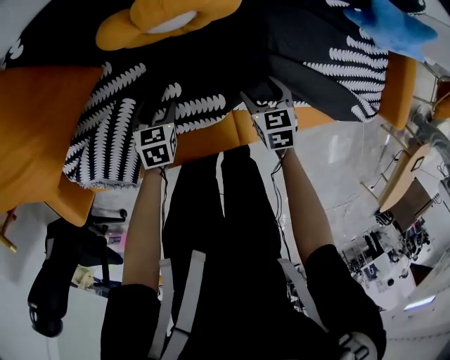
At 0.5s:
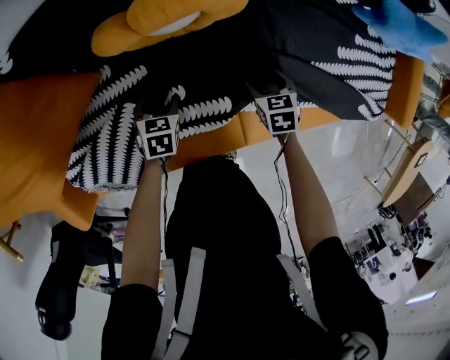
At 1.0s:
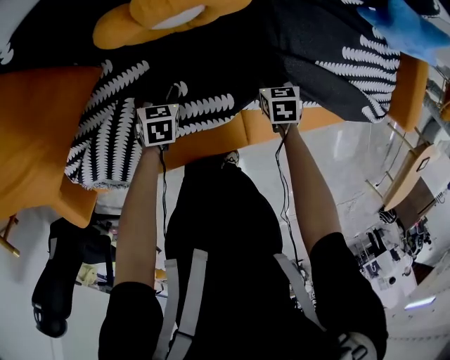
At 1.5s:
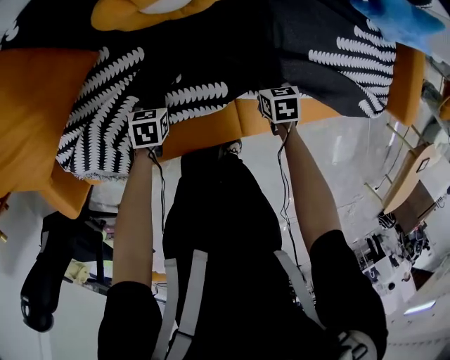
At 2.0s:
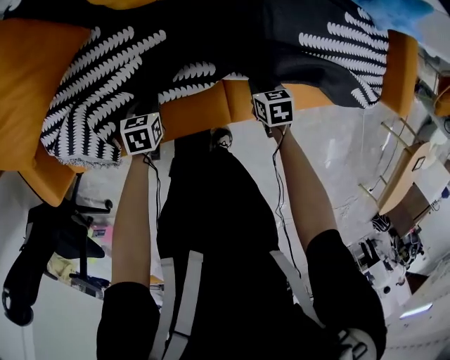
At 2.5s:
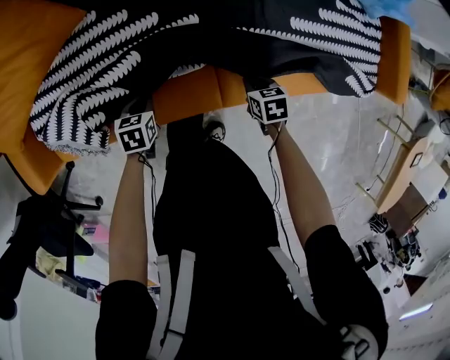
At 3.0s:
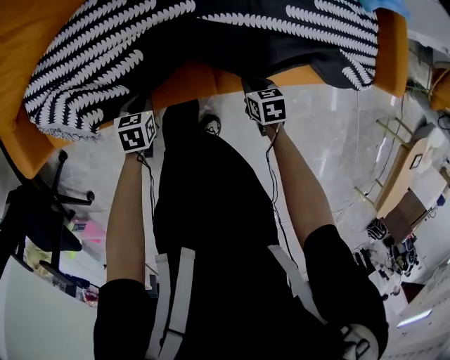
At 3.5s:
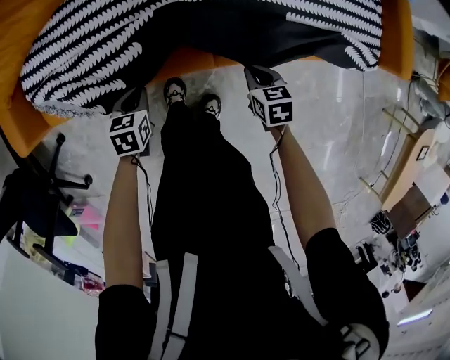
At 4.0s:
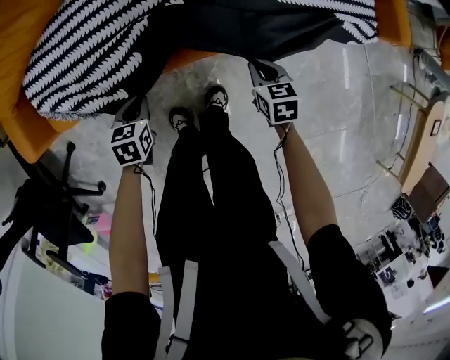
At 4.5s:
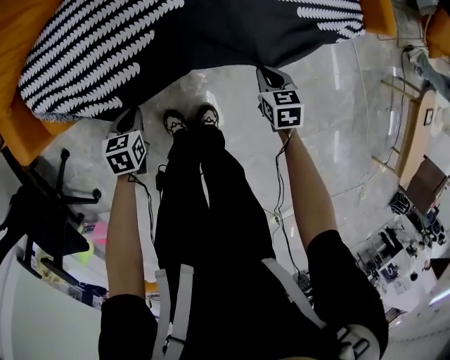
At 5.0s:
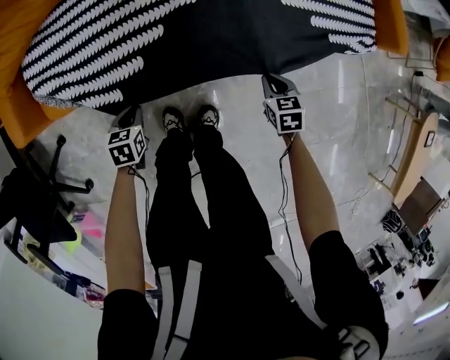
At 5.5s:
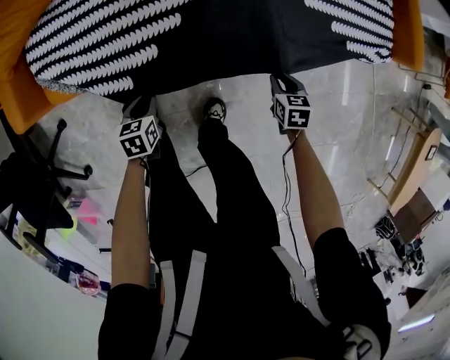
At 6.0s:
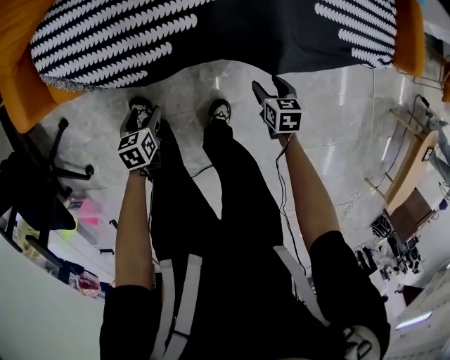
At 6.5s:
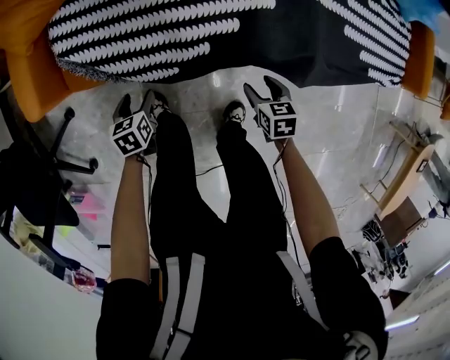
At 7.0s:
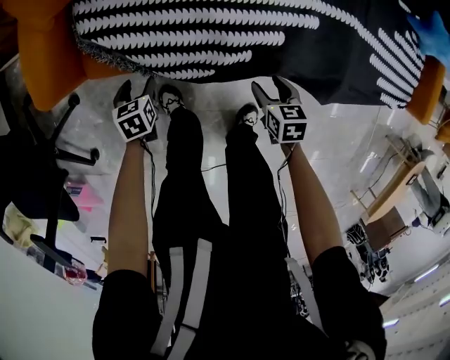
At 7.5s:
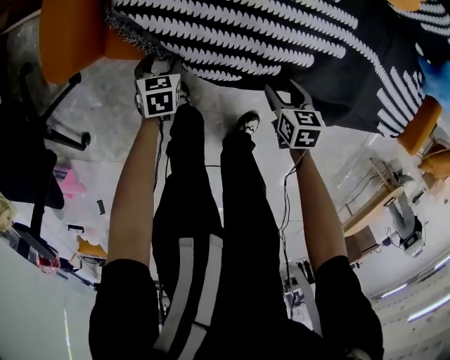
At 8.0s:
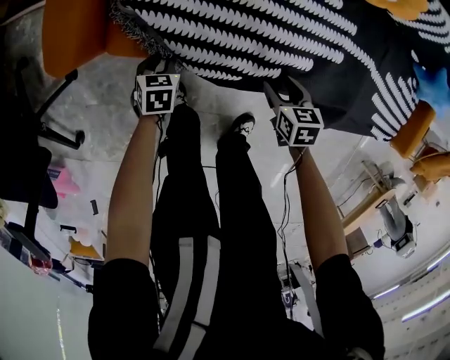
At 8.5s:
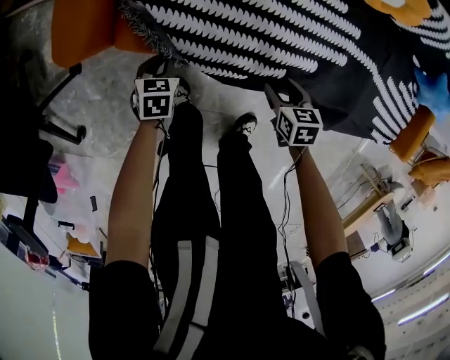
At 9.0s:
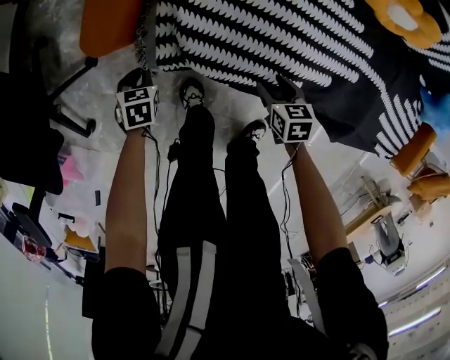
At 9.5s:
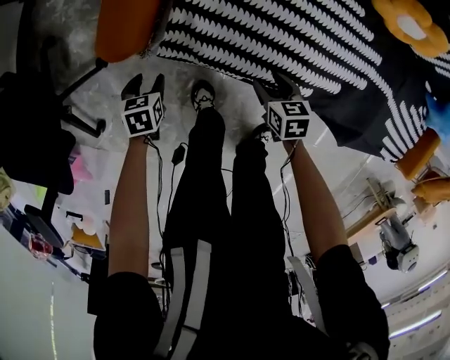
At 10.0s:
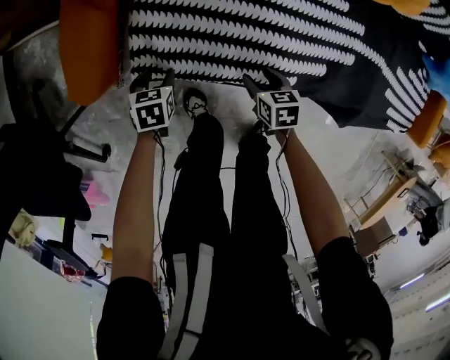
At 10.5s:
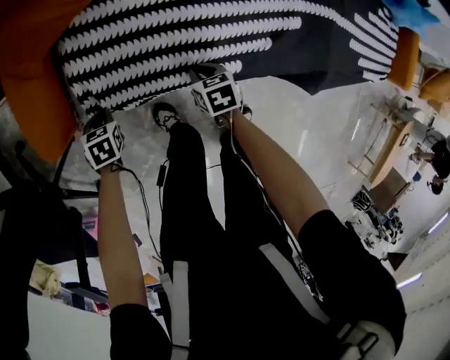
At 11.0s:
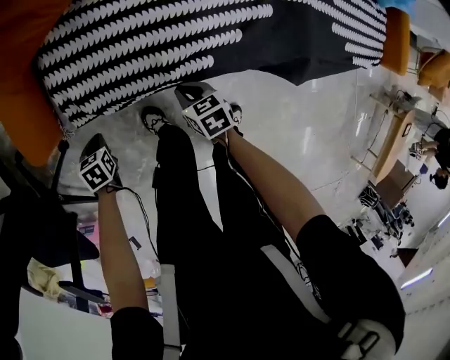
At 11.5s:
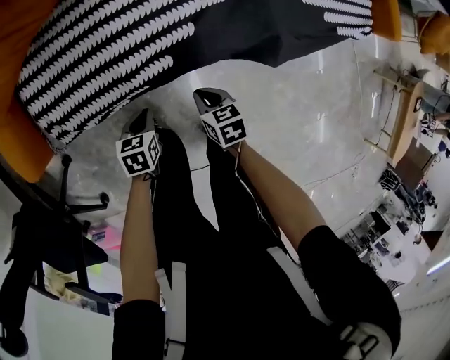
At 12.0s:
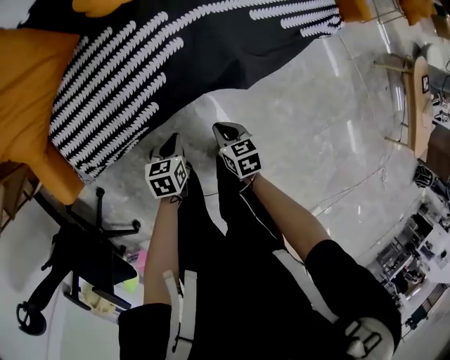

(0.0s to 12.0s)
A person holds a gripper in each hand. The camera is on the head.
0.0s - 2.0s: The right gripper heads backward and downward, covering some 15 cm, and closes its fingers; the left gripper shifts approximately 10 cm backward, and closes.
2.0s - 4.0s: Both grippers travel together backward and upward, some 20 cm.
4.0s - 6.0s: The right gripper moves downward and backward, about 10 cm, and opens up. Meanwhile the left gripper goes some 15 cm backward, downward and to the left, and opens its fingers.
6.0s - 8.0s: Both grippers move to the left and forward, approximately 30 cm. The right gripper rotates approximately 20 degrees, while the left gripper closes up.
8.0s - 10.0s: The left gripper goes to the left and returns, roughly 15 cm each way, and opens, while the right gripper moves to the left and downward, some 10 cm.
10.0s - 12.0s: The right gripper moves approximately 35 cm, swivels about 30 degrees, and closes its fingers, while the left gripper shifts by approximately 40 cm, turns by approximately 30 degrees, and closes its fingers.

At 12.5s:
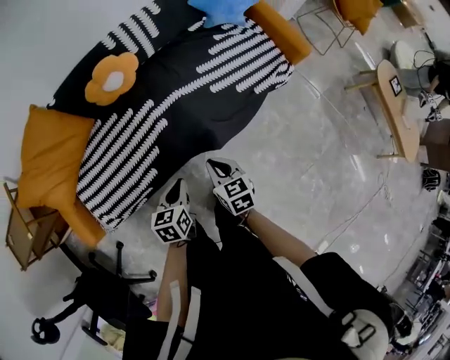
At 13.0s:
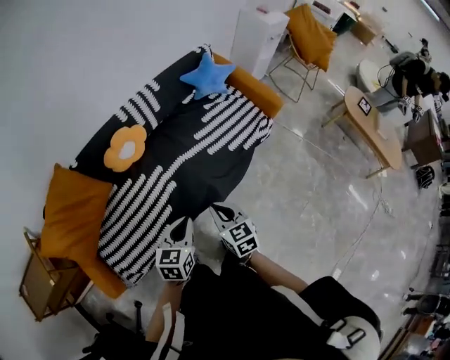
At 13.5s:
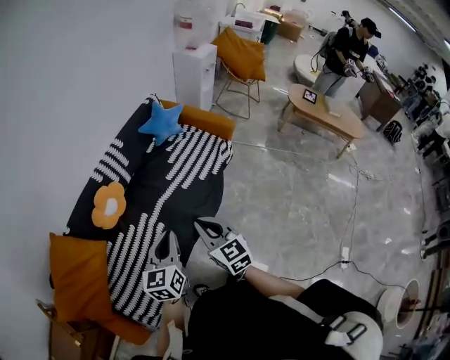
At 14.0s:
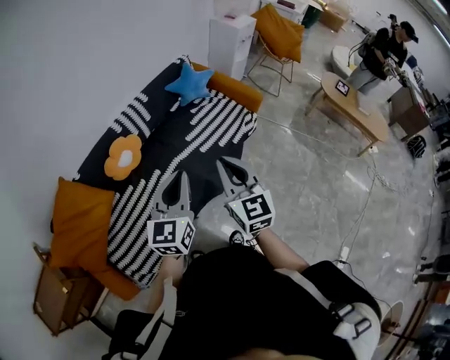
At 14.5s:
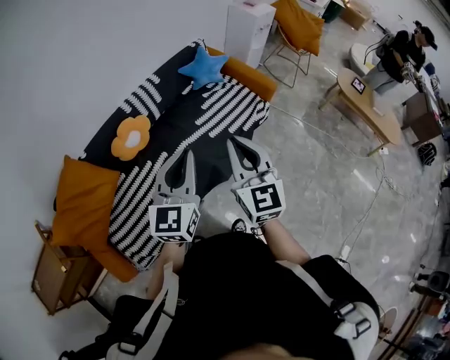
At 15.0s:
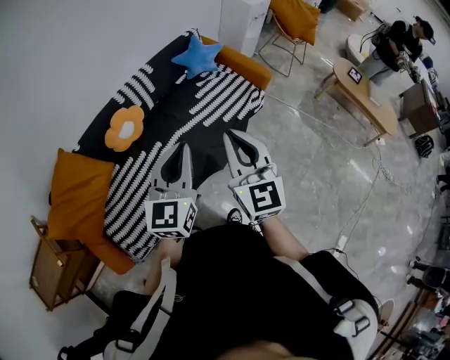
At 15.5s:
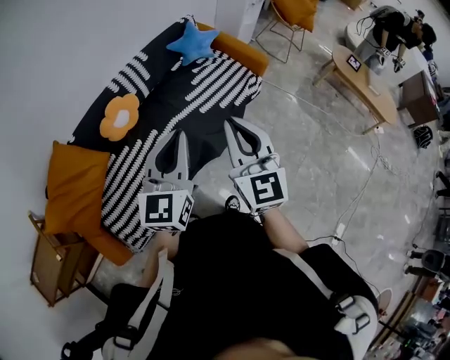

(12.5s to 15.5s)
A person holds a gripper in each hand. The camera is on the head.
12.5s - 14.0s: Both grippers move upward, about 35 cm. The right gripper points its fingers approximately 30 degrees further upward, while the left gripper tips its fingers upward by approximately 40 degrees.
14.0s - 15.5s: The grippers make only small movements.

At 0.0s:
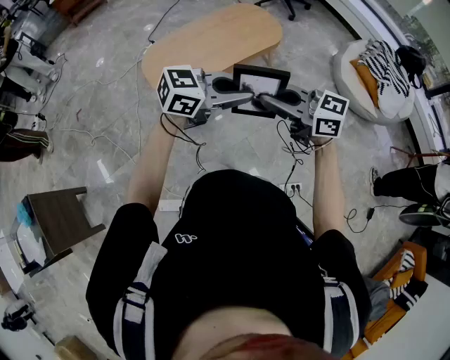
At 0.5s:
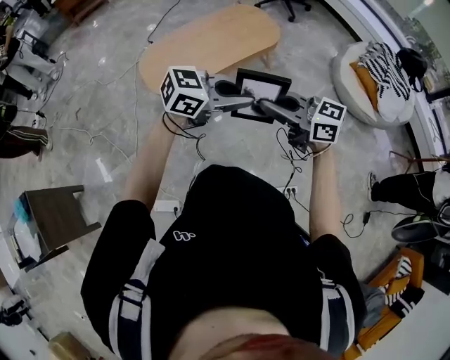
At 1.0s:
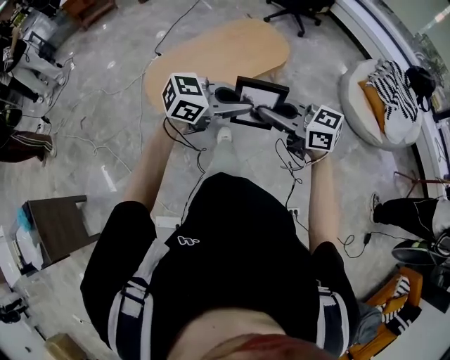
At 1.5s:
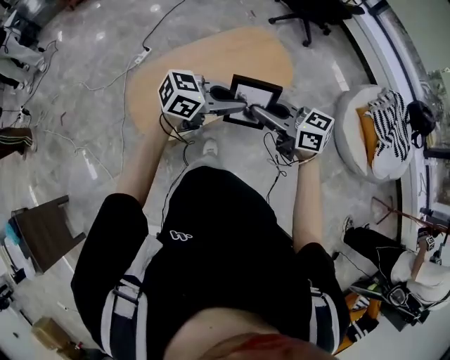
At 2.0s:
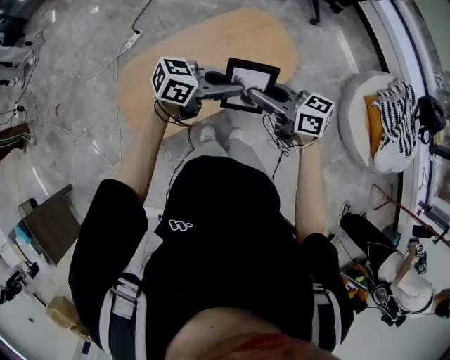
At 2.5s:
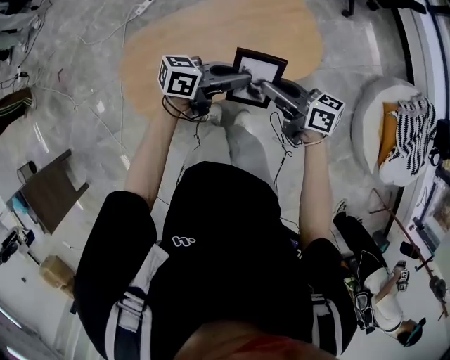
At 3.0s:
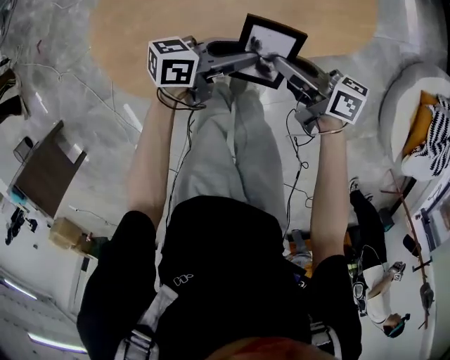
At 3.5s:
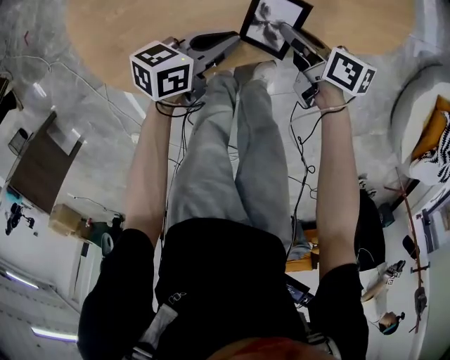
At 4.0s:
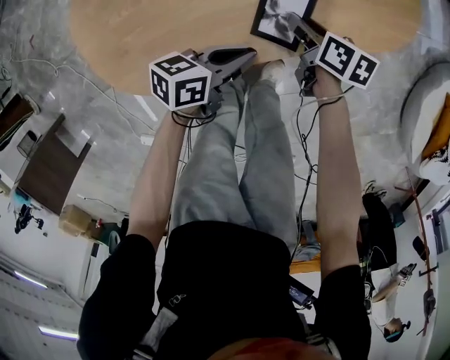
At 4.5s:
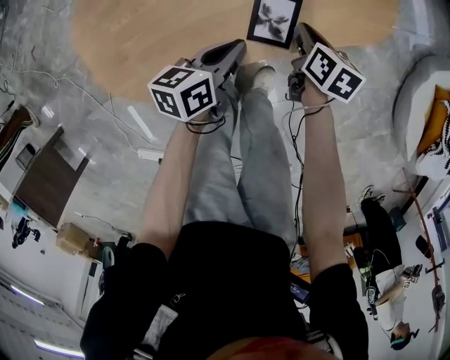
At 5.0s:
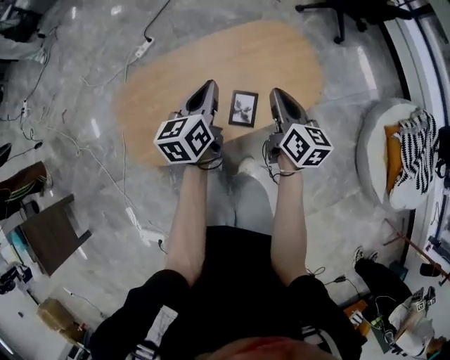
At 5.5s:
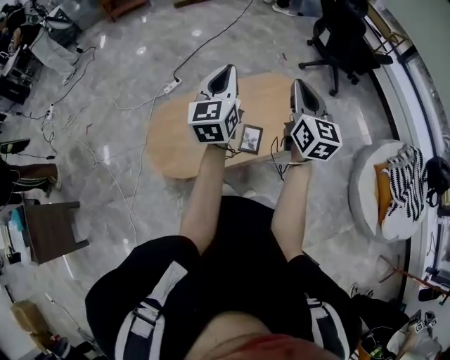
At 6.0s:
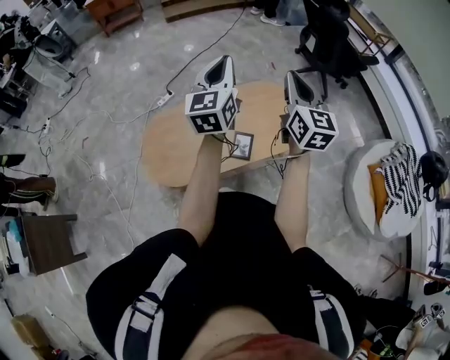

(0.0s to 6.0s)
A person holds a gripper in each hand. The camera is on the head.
0.0s - 2.0s: The pair of grippers is taken about 60 cm. The right gripper turns by about 20 degrees, while the left gripper rotates some 20 degrees.
2.0s - 4.0s: Both grippers travel together downward, roughly 50 cm. The left gripper changes its angle by approximately 40 degrees, and opens, then closes again. Meanwhile the right gripper angles its fingers downward, by about 40 degrees.
4.0s - 6.0s: Both grippers move upward, about 60 cm. The right gripper angles its fingers upward, by approximately 50 degrees, and closes up. Meanwhile the left gripper turns by approximately 80 degrees.

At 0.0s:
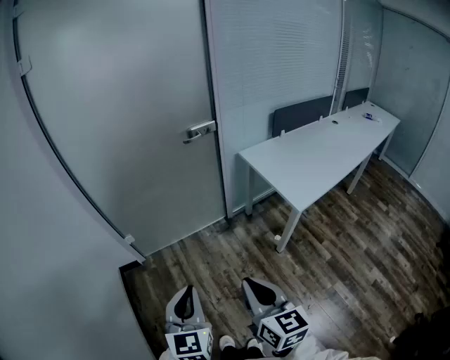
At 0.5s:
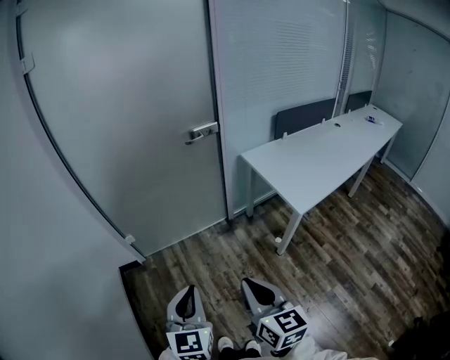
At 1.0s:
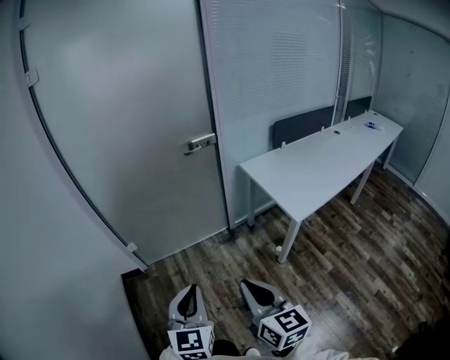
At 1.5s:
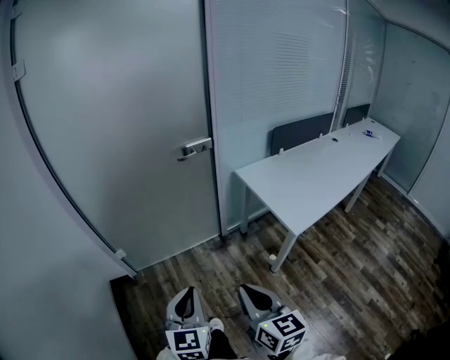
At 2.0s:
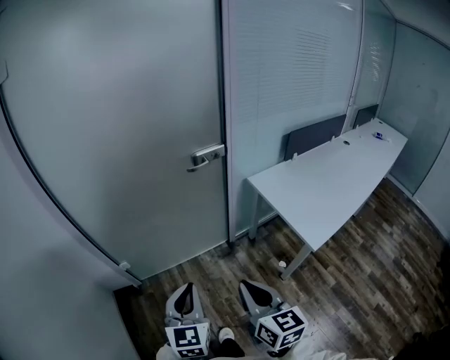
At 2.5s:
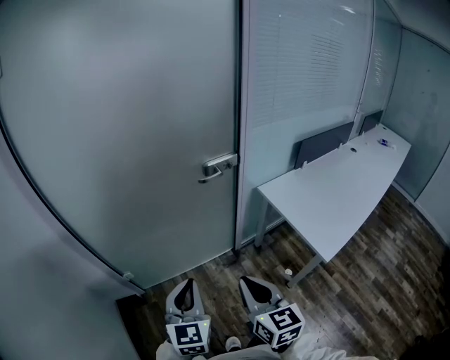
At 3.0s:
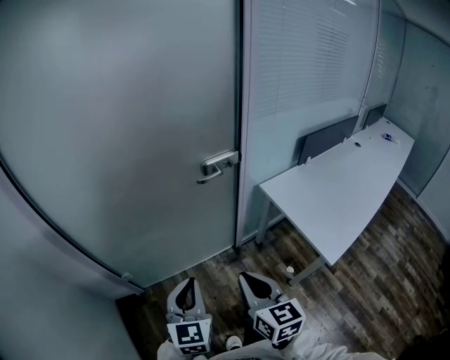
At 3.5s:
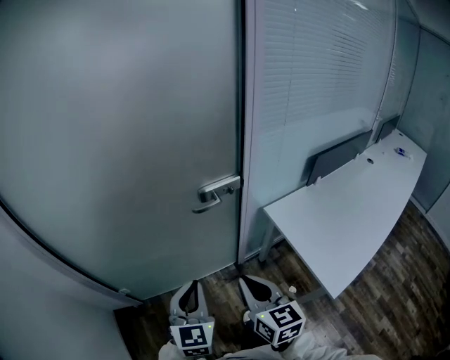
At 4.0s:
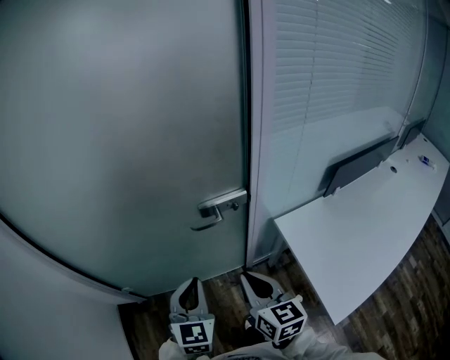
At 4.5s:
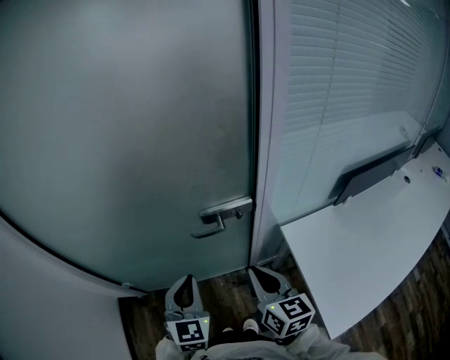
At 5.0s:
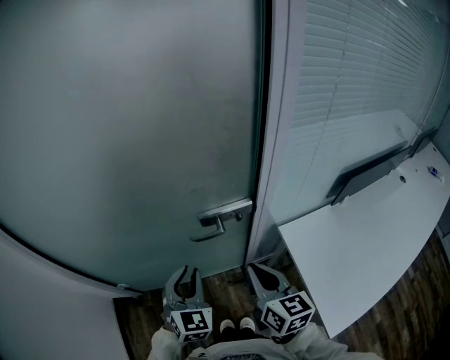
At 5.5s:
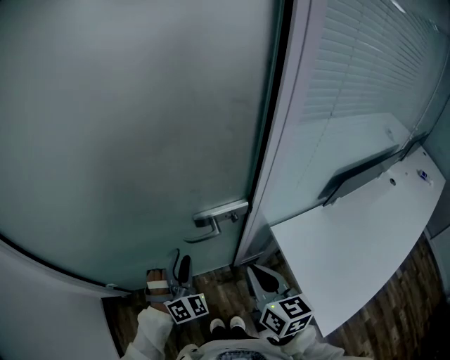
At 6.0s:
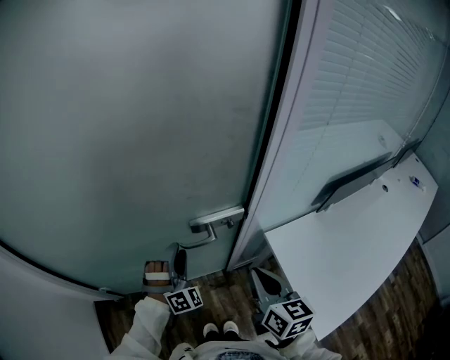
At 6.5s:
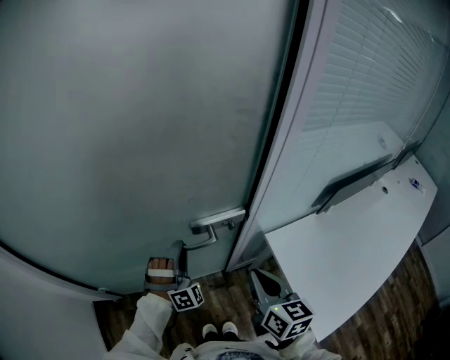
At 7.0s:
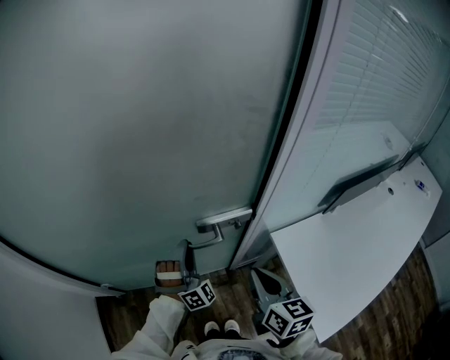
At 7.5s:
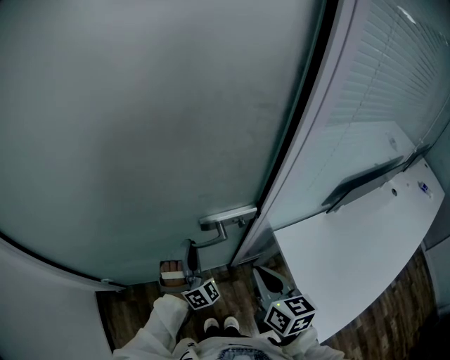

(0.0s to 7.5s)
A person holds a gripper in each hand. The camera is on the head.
0.0s - 2.0s: Both grippers travel together forward, roughly 20 cm.
2.0s - 4.0s: Both grippers travel together forward, approximately 35 cm.
4.0s - 5.5s: The left gripper heads forward and downward, covering approximately 15 cm, rolls clockwise, seen from behind, by roughly 50 degrees, and opens up. The right gripper heads forward, covering some 10 cm.
5.5s - 7.5s: The left gripper shifts roughly 5 cm forward, and closes.
